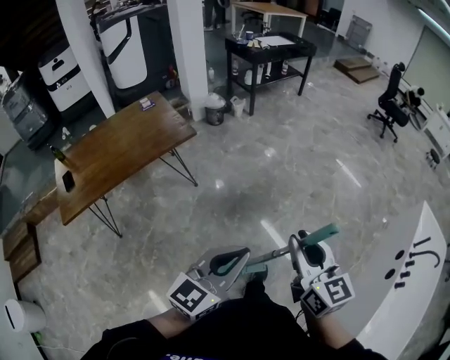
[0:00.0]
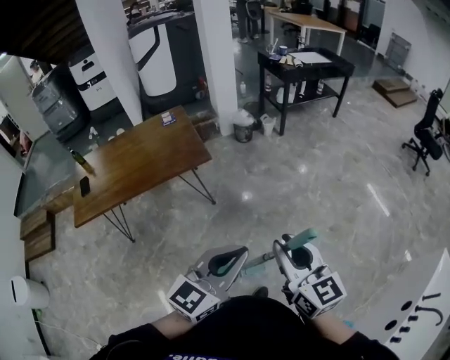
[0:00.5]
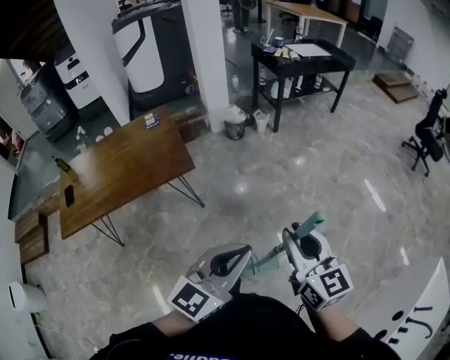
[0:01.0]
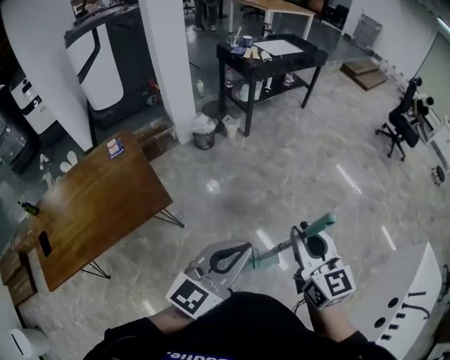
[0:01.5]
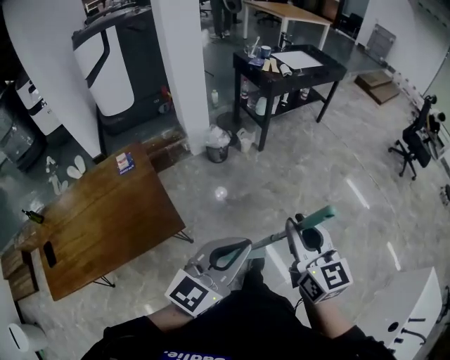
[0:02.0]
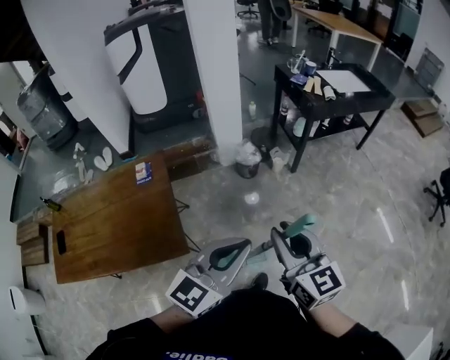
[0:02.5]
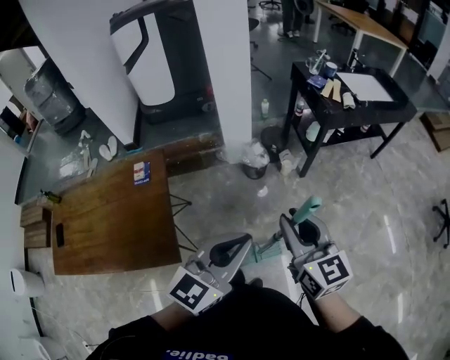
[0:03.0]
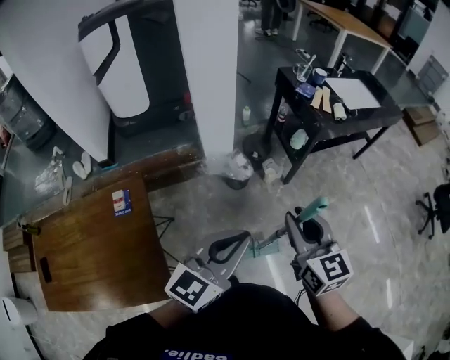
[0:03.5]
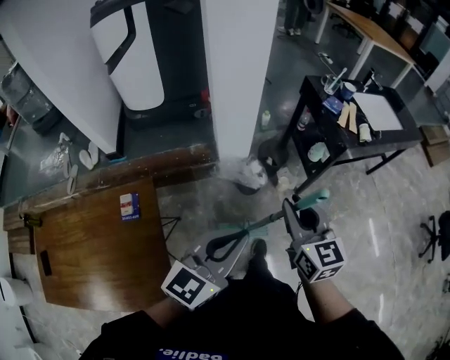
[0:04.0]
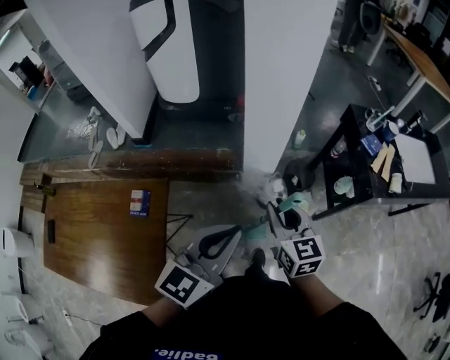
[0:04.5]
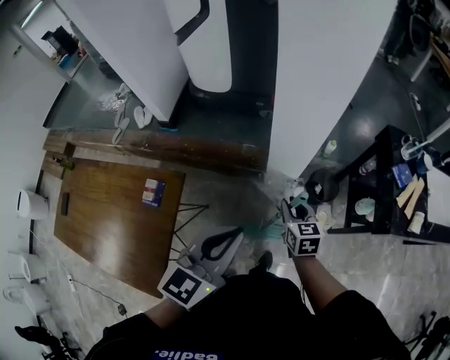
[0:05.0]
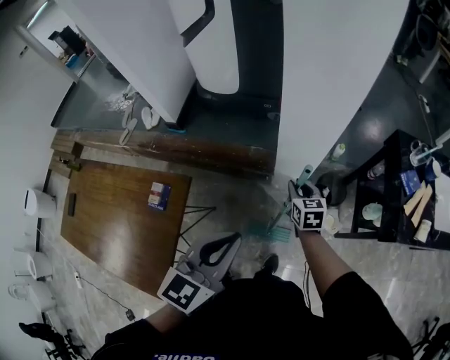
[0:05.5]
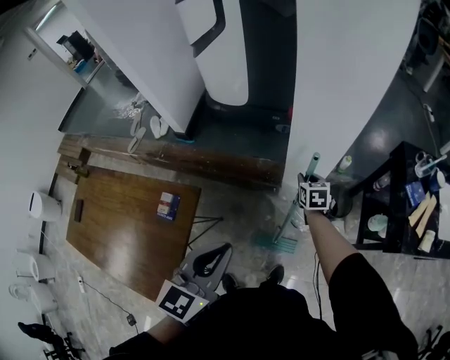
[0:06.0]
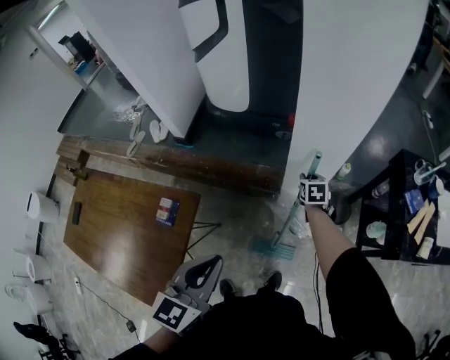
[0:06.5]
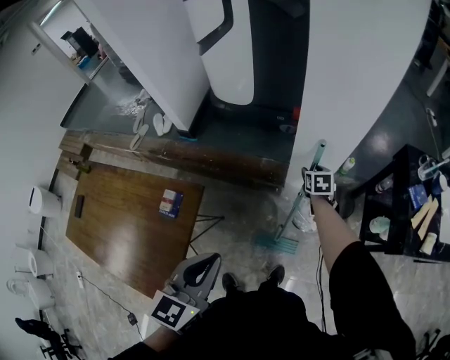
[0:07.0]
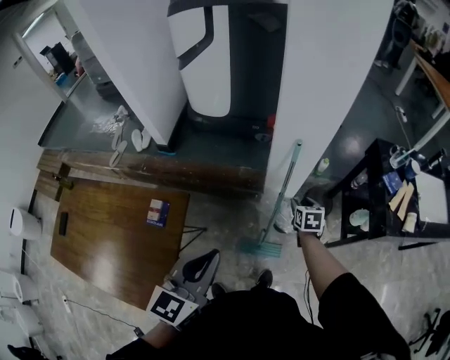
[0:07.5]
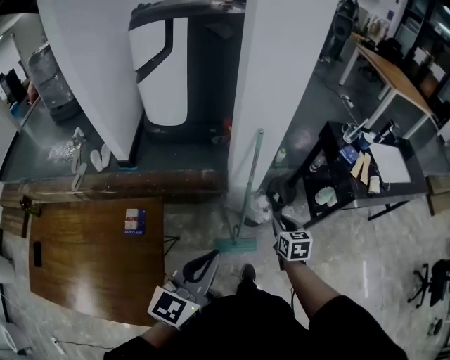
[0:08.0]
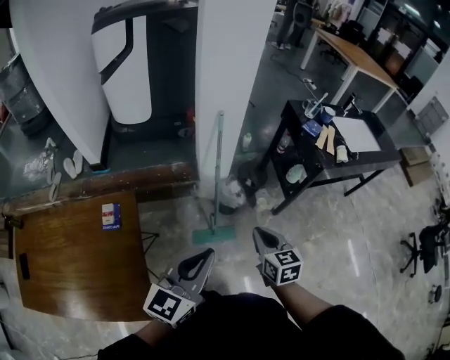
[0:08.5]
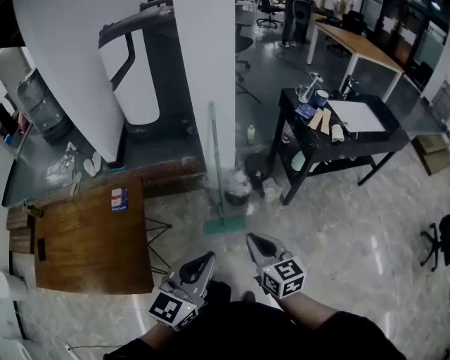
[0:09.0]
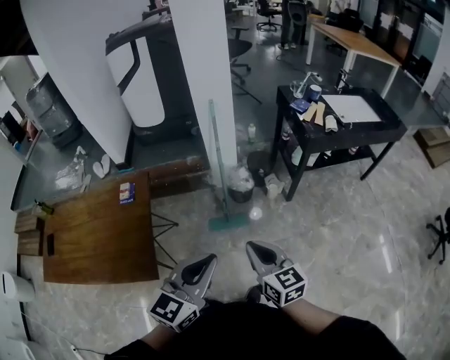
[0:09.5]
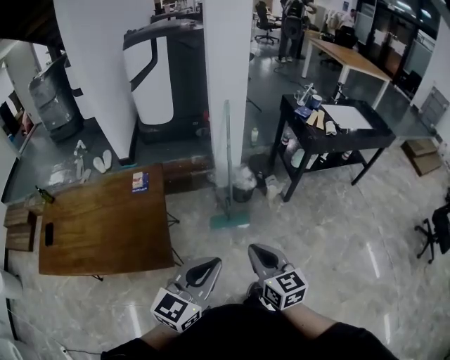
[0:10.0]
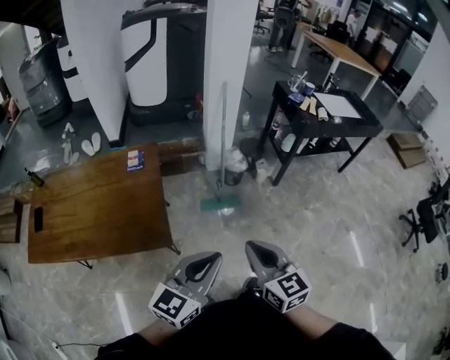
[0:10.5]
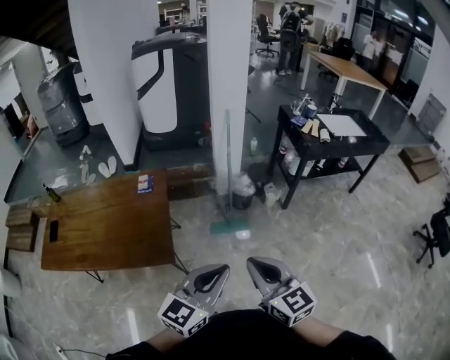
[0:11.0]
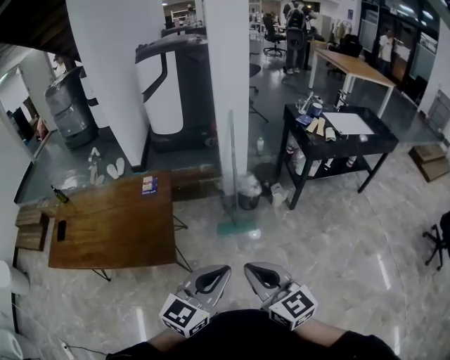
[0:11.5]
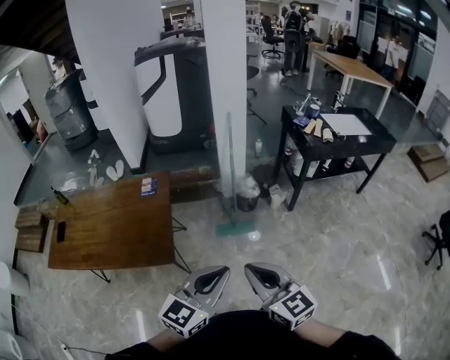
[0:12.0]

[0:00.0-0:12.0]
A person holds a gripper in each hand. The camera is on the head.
0.0 to 2.0 s: The two grippers travel together, forward, approximately 60 cm.
2.0 to 4.0 s: The two grippers travel together, forward, roughly 50 cm. The left gripper turns by approximately 20 degrees.
4.0 to 6.0 s: The right gripper ends up approximately 50 cm from where it was, and rotates about 30 degrees; the left gripper moves about 15 cm, and changes its angle by about 40 degrees.
6.0 to 8.0 s: The left gripper goes some 10 cm backward, and rotates approximately 20 degrees; the right gripper shifts about 25 cm backward, and opens, then closes once more.
8.0 to 10.0 s: Both grippers move backward, approximately 40 cm. The right gripper swivels approximately 20 degrees, and closes its fingers.
10.0 to 12.0 s: The right gripper heads backward and upward, covering some 15 cm, while the left gripper travels backward and to the right by about 10 cm.

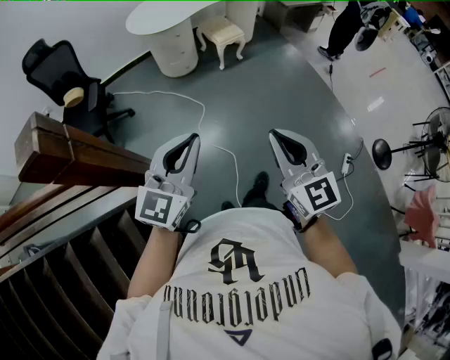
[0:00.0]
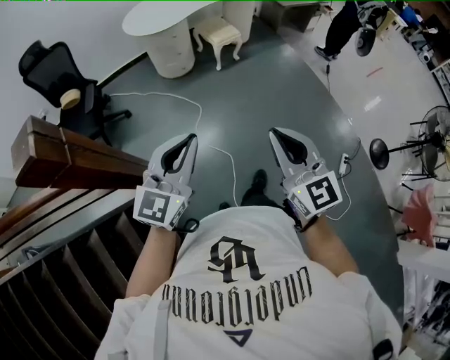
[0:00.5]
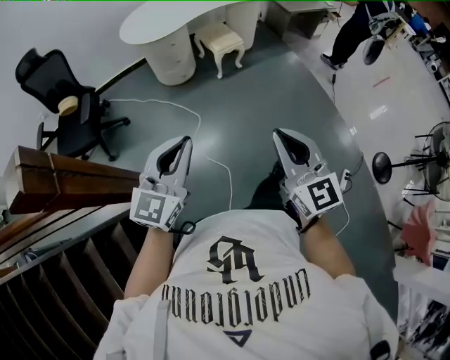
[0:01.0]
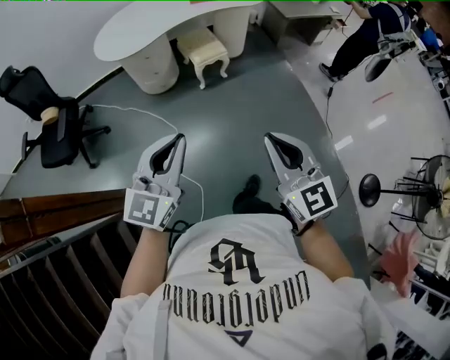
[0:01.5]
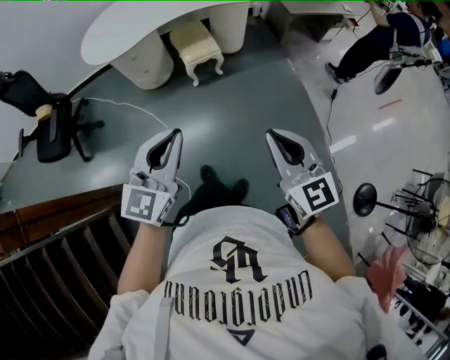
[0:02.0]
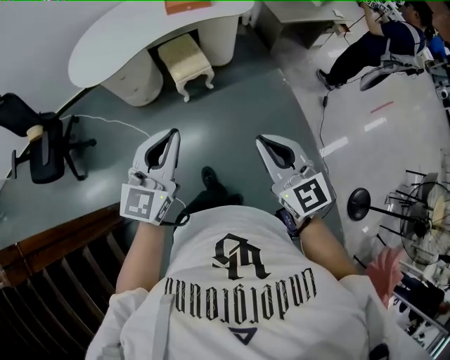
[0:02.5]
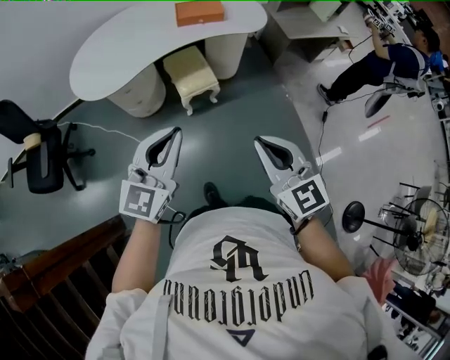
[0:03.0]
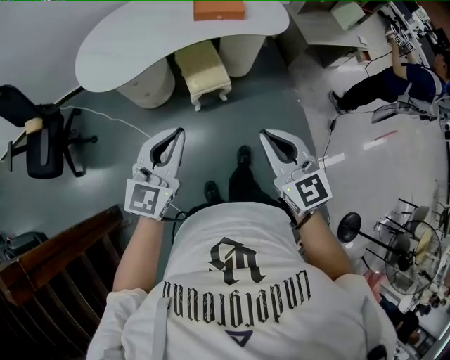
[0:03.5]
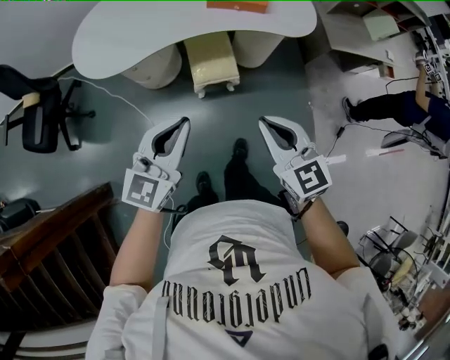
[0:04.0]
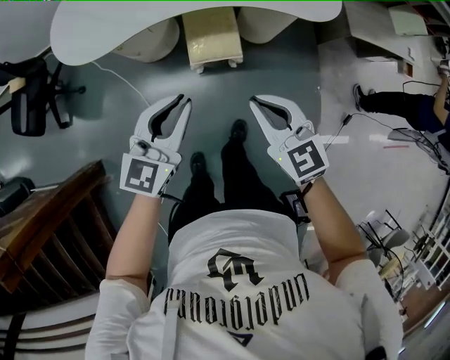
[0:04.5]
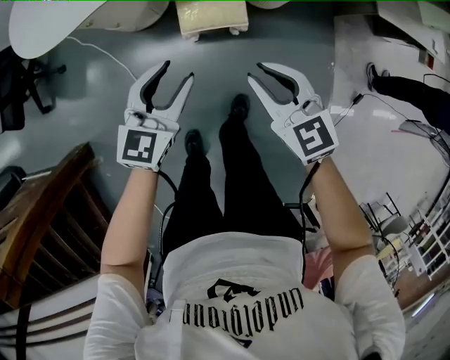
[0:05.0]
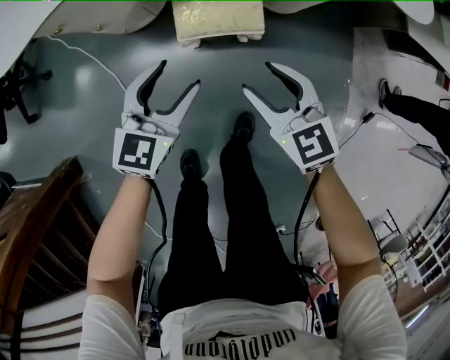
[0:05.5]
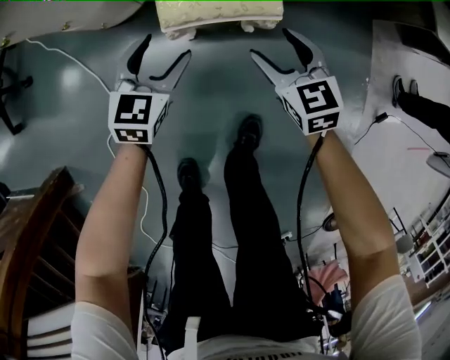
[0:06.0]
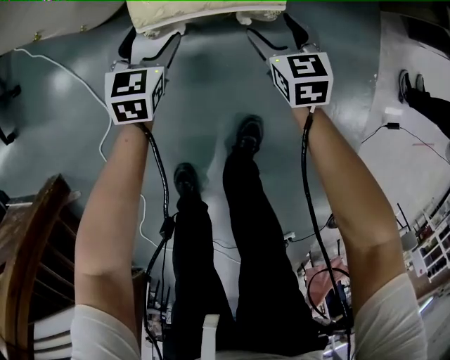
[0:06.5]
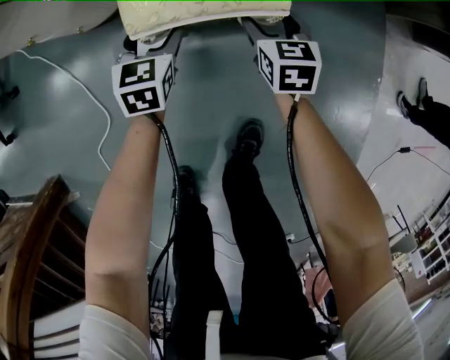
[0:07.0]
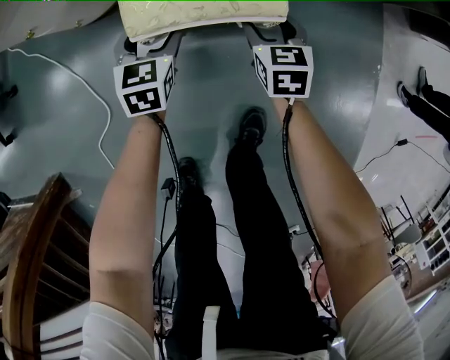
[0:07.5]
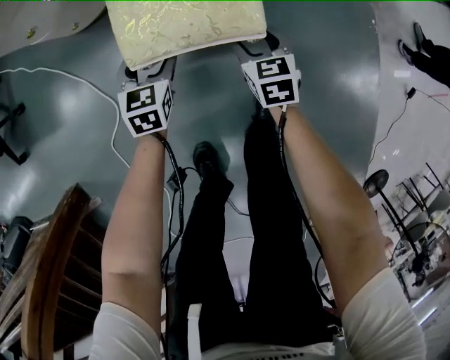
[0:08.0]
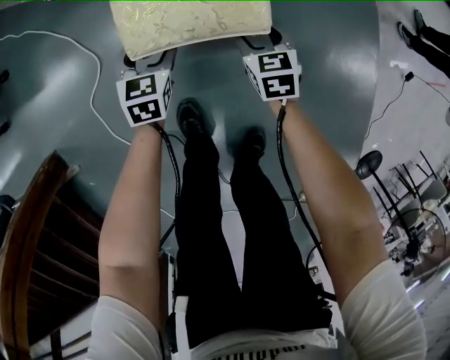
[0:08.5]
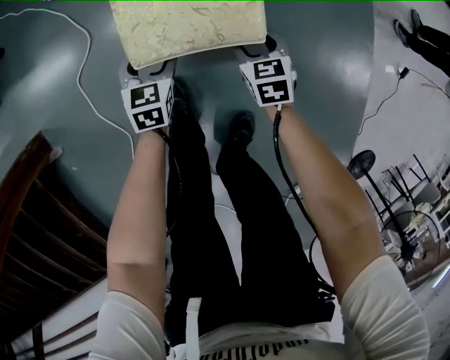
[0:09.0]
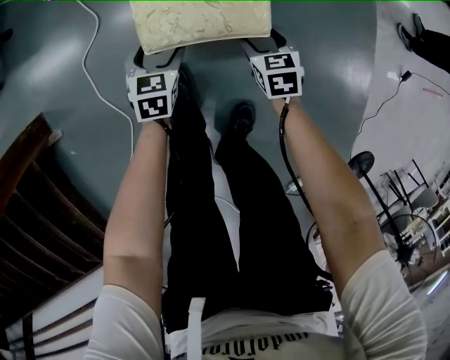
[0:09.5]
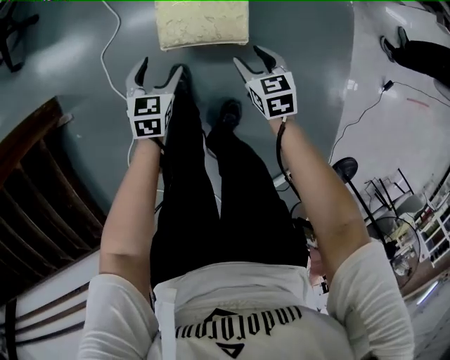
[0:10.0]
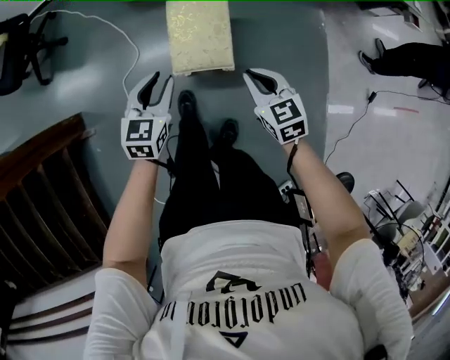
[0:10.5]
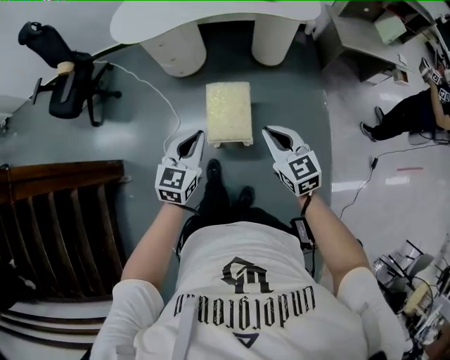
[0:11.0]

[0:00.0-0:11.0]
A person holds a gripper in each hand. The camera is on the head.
0.0 to 2.0 s: The two grippers travel together, forward and to the right, some 60 cm.
2.0 to 3.5 s: Both grippers travel together forward, about 30 cm.
3.5 to 5.5 s: Both grippers travel together downward and forward, approximately 60 cm. The right gripper rotates about 30 degrees, and opens up. The left gripper changes its angle by approximately 20 degrees, and opens.
5.5 to 7.5 s: Both grippers travel together downward, about 35 cm. The left gripper changes its angle by some 20 degrees. Meanwhile the right gripper turns by about 30 degrees.
7.5 to 9.0 s: The pair of grippers is taken backward, some 50 cm.
9.0 to 11.0 s: Both grippers travel together upward, some 70 cm. The left gripper turns by about 20 degrees, and closes, while the right gripper turns by roughly 30 degrees, and closes its fingers.

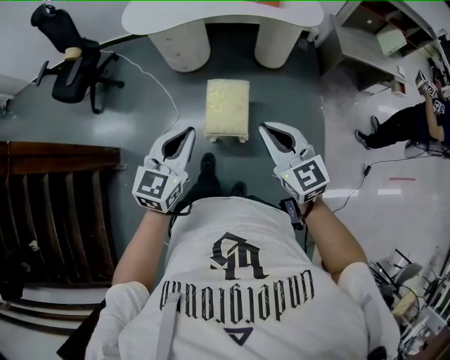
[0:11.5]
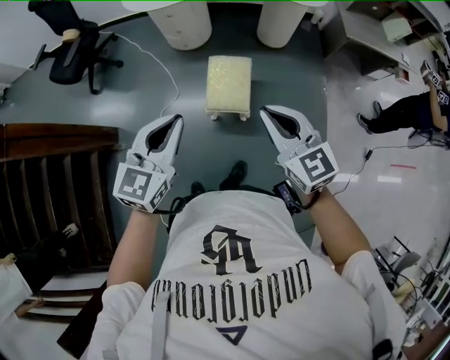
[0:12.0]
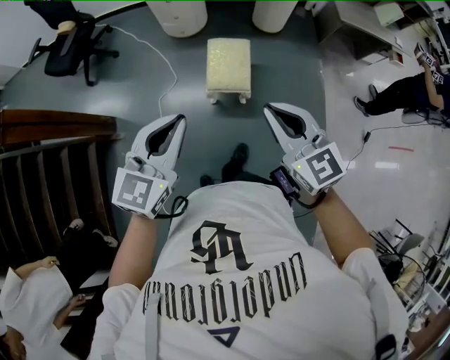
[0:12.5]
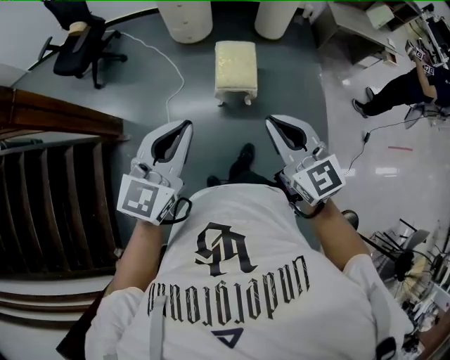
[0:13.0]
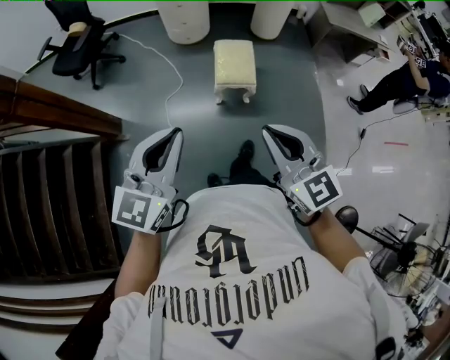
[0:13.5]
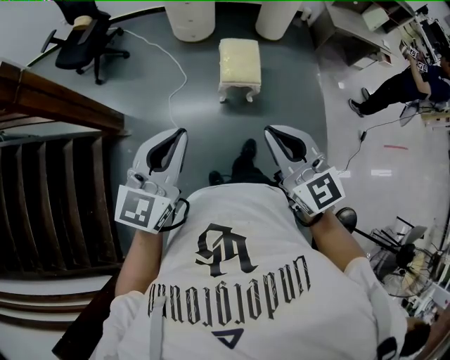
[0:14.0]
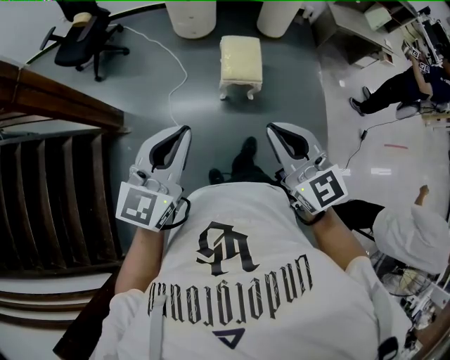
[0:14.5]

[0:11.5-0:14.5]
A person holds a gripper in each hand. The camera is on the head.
11.5 to 13.0 s: The two grippers go about 30 cm backward and to the left.
13.0 to 14.5 s: Both grippers move backward and to the left, some 10 cm.

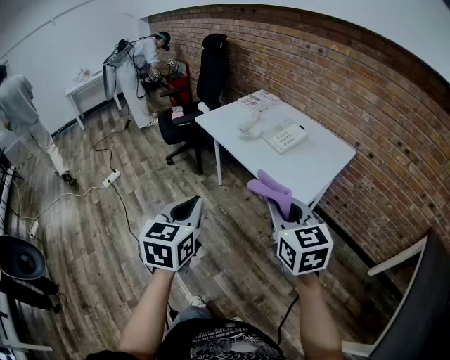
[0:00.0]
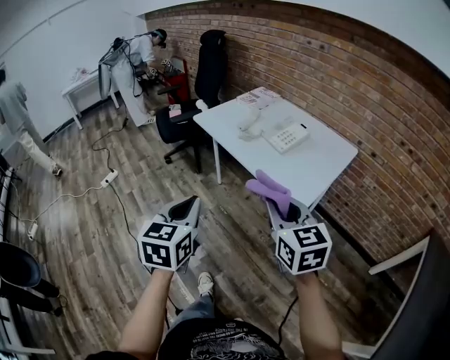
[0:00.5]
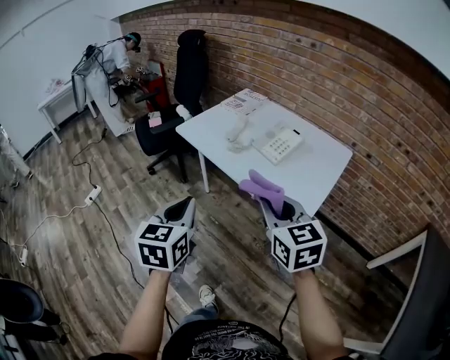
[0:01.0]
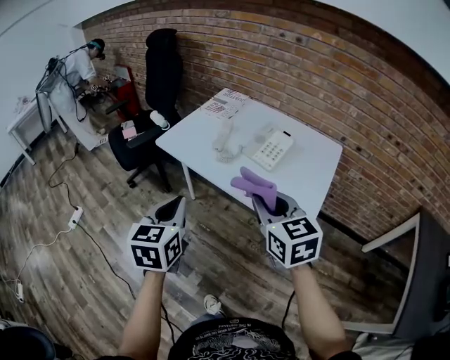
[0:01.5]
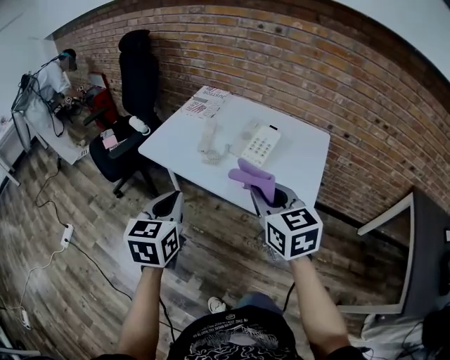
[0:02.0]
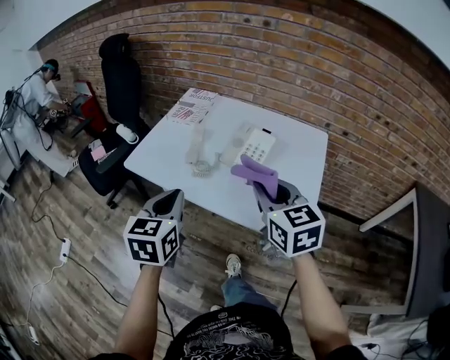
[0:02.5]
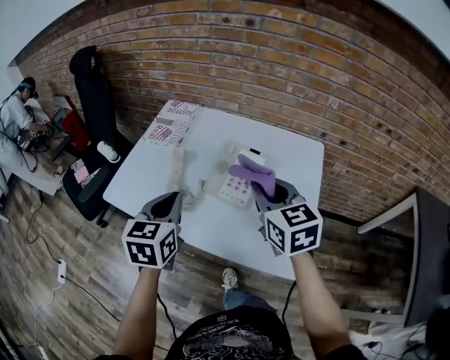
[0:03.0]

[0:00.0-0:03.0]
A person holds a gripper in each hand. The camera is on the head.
0.0 to 1.5 s: The grippers both shift forward by roughly 25 cm.
1.5 to 3.0 s: The left gripper moves forward, approximately 25 cm. The right gripper heads forward and to the right, covering about 25 cm.
